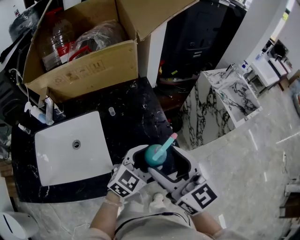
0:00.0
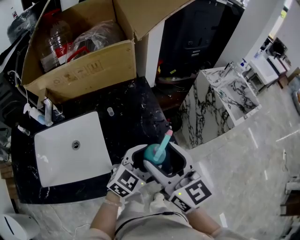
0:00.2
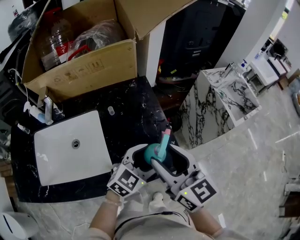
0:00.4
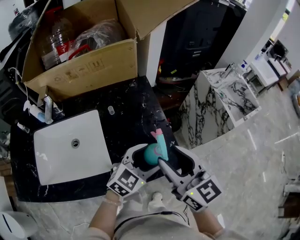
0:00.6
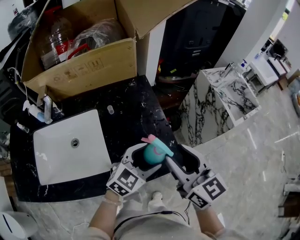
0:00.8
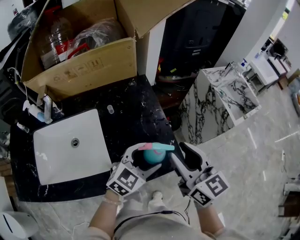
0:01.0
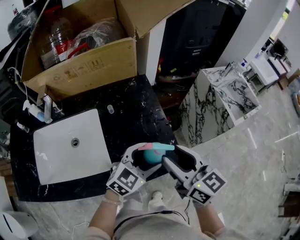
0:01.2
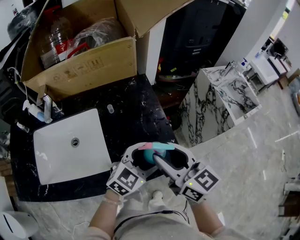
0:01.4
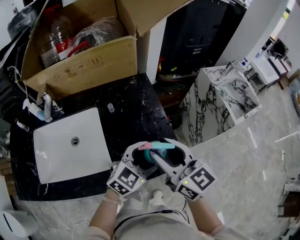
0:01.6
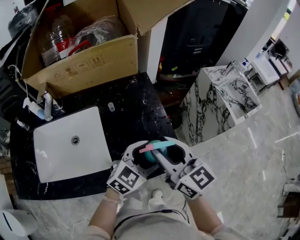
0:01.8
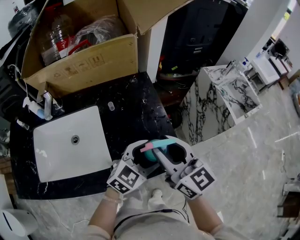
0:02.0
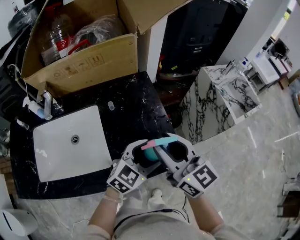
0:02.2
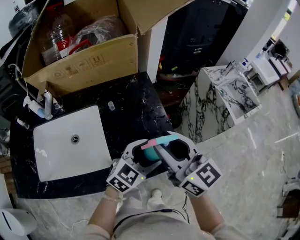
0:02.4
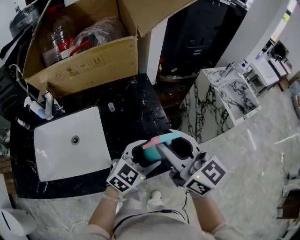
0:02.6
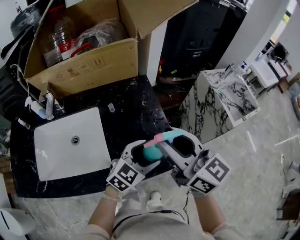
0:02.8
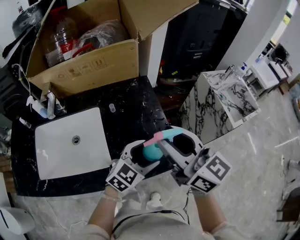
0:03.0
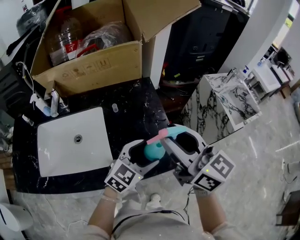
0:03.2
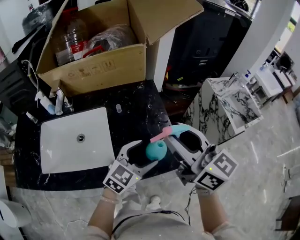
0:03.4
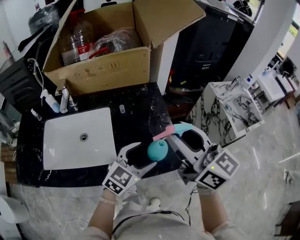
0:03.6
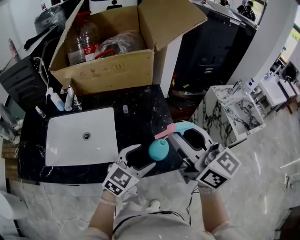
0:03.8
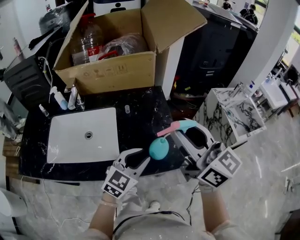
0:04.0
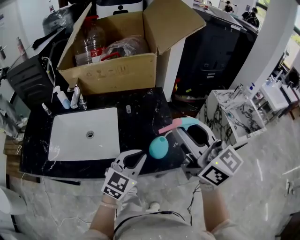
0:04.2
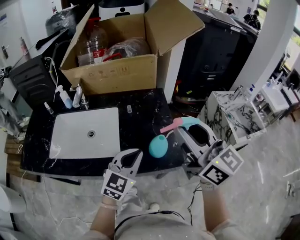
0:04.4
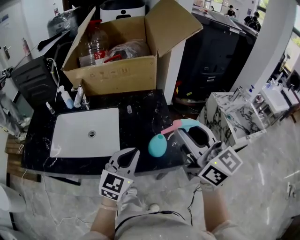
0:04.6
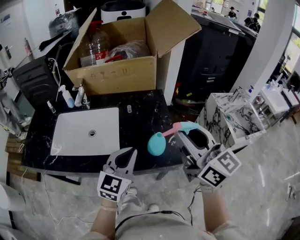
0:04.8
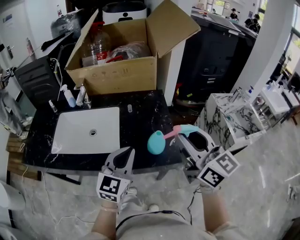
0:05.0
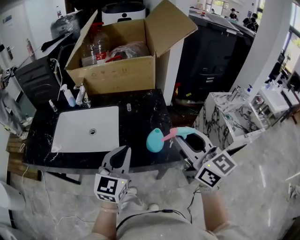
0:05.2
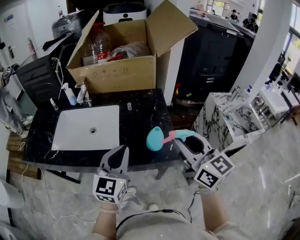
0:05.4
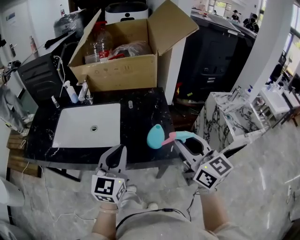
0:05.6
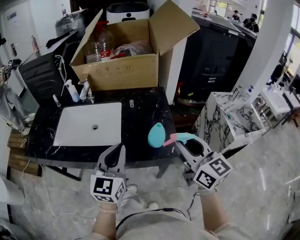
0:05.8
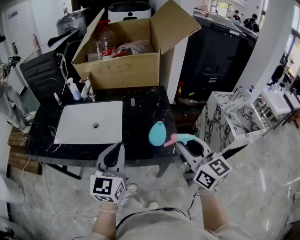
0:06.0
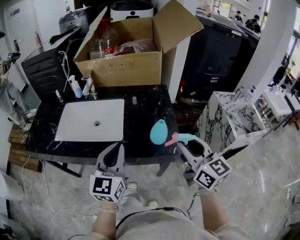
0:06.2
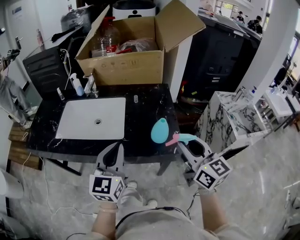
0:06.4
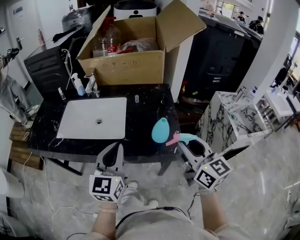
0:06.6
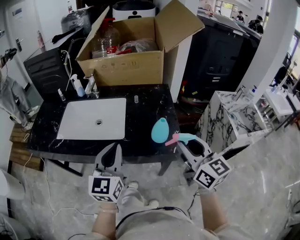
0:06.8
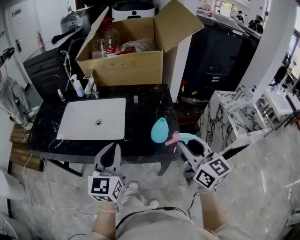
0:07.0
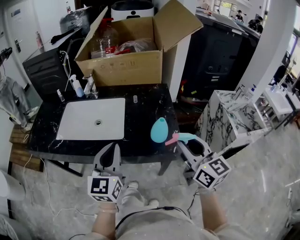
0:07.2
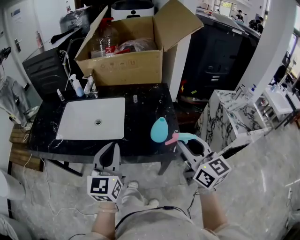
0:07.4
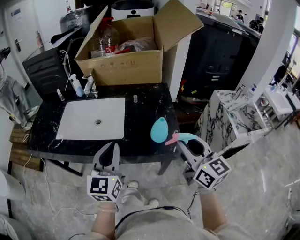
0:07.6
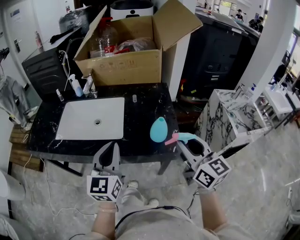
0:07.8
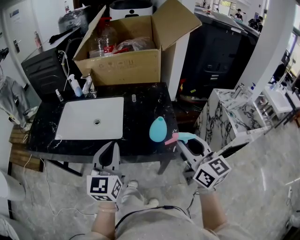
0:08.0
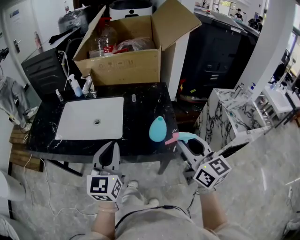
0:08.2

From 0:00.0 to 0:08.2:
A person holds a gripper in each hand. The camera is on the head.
From 0:00.0 to 0:01.6: The right gripper closes up.
From 0:01.6 to 0:03.2: The right gripper heads upward, covering approximately 10 cm.
From 0:03.2 to 0:05.0: The left gripper moves upward, to the left and backward, roughly 15 cm, changes its angle by some 40 degrees, and closes up. The right gripper shifts approximately 5 cm backward.
From 0:05.0 to 0:06.6: The right gripper goes roughly 10 cm downward; the left gripper heads to the left, covering about 5 cm.
From 0:06.6 to 0:08.2: Both grippers stay put.

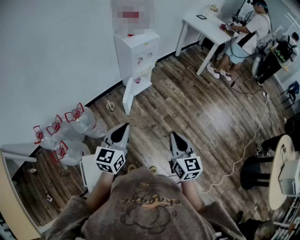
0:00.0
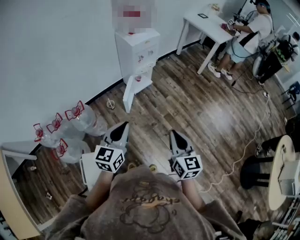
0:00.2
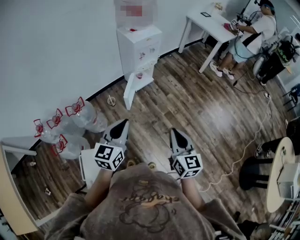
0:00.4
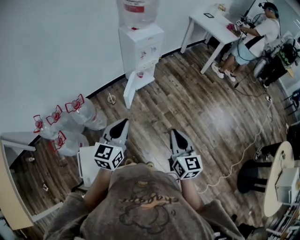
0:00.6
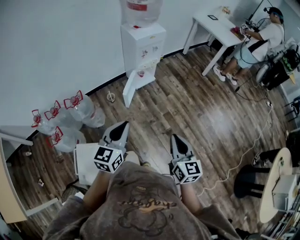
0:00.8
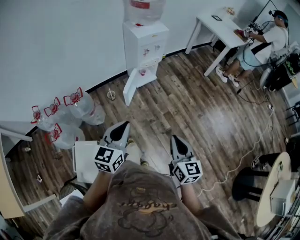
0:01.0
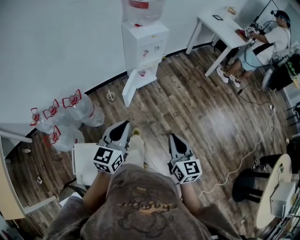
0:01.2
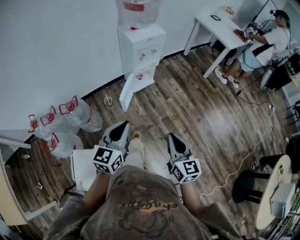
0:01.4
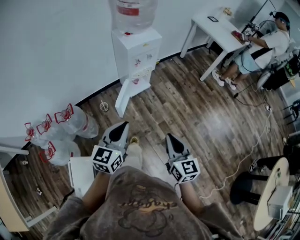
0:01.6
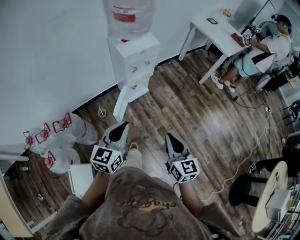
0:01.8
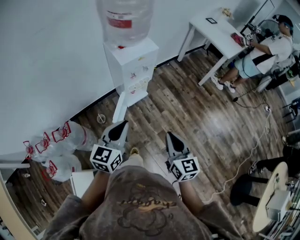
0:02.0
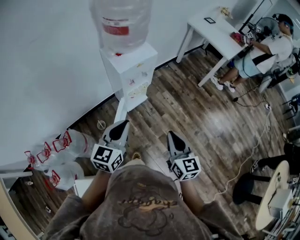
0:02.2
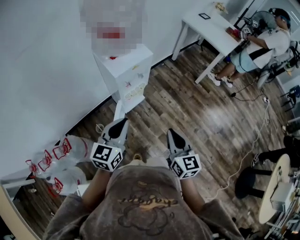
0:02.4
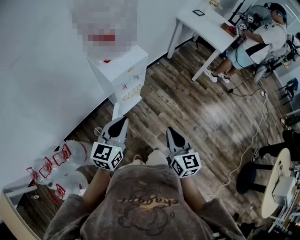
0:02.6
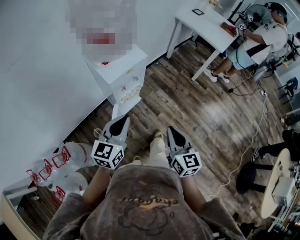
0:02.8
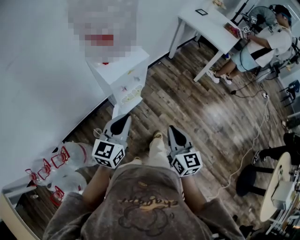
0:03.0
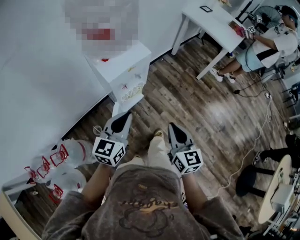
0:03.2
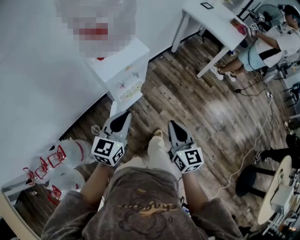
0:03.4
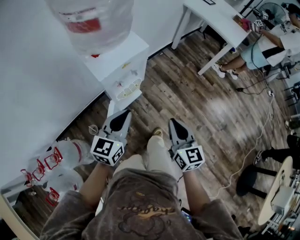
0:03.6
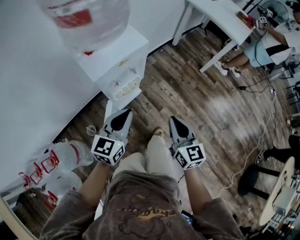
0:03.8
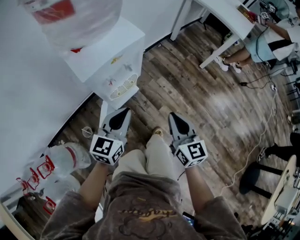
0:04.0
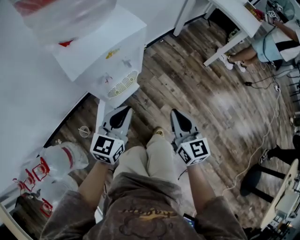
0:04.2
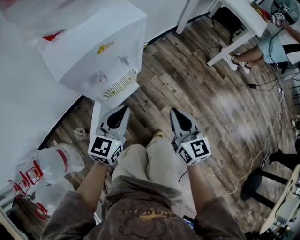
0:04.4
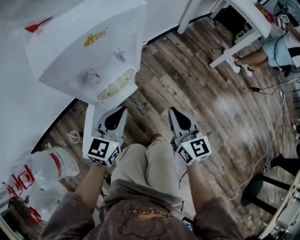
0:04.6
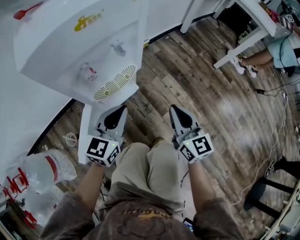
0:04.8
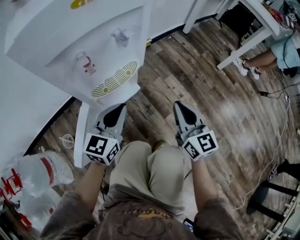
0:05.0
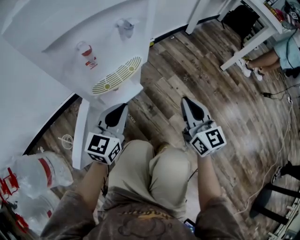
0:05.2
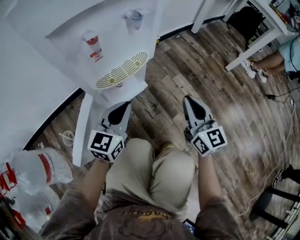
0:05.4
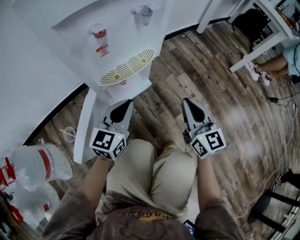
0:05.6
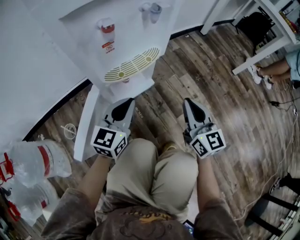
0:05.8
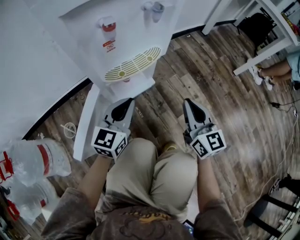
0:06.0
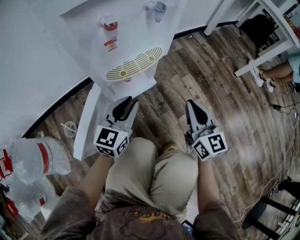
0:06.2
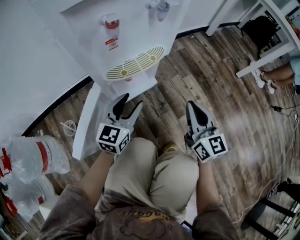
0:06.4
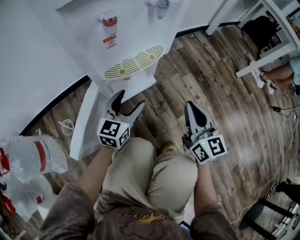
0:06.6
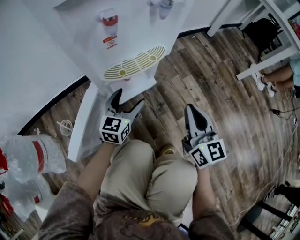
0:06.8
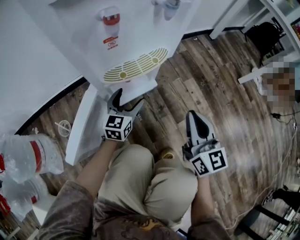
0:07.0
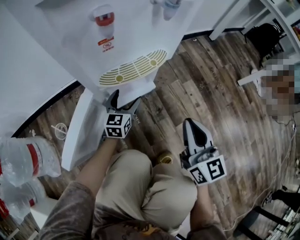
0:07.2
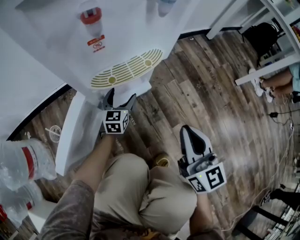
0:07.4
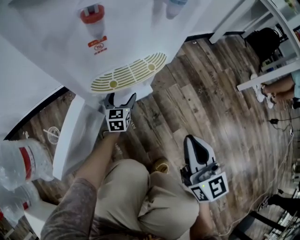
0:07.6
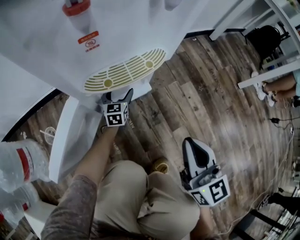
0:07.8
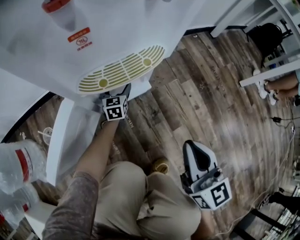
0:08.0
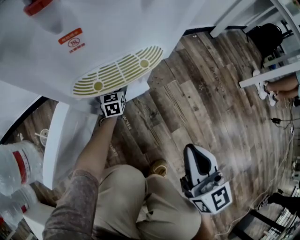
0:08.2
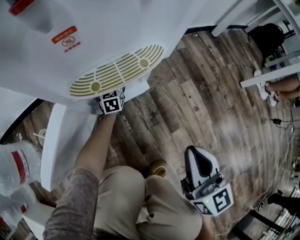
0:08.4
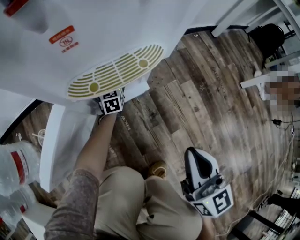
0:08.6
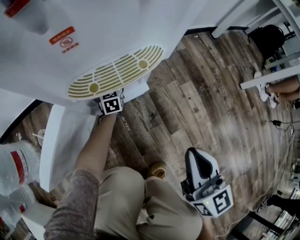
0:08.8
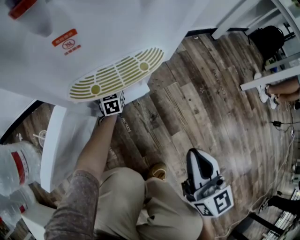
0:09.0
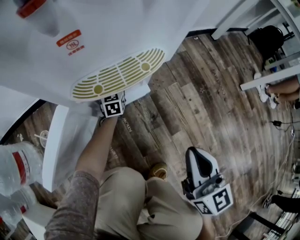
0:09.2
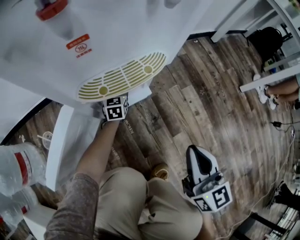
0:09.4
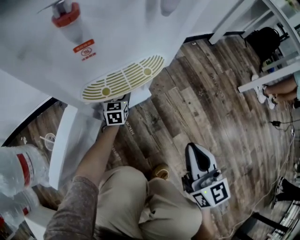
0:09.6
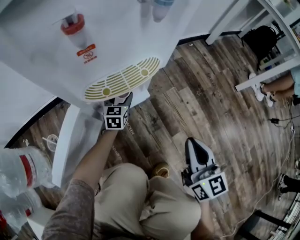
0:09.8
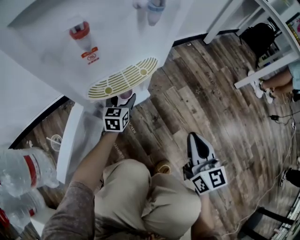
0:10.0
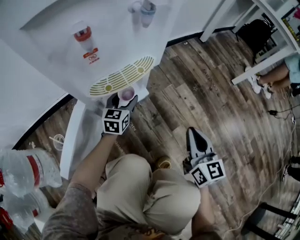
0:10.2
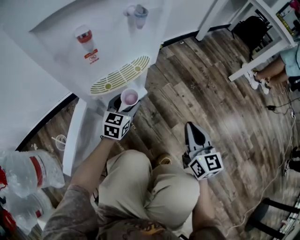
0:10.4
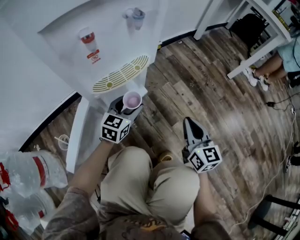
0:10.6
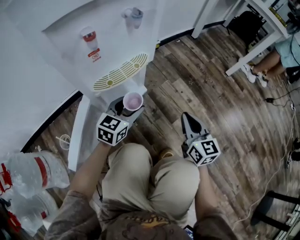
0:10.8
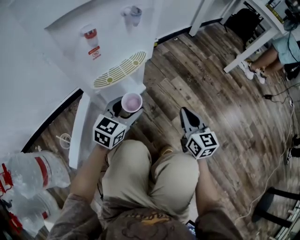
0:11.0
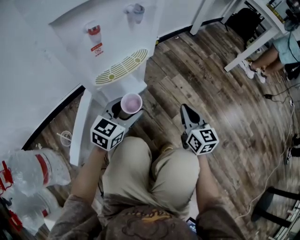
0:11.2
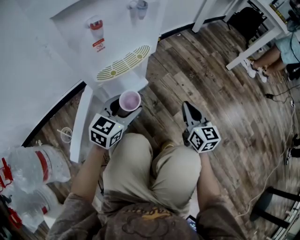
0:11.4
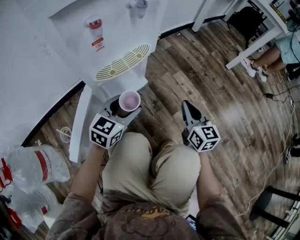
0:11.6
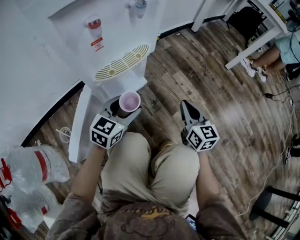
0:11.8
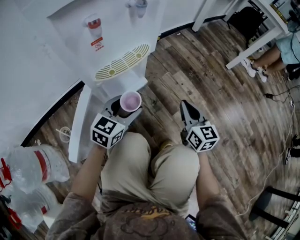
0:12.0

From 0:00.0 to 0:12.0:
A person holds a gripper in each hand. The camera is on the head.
From 0:00.0 to 0:01.6: The left gripper goes some 15 cm forward and to the right. The right gripper moves forward, about 15 cm.
From 0:01.6 to 0:03.0: The grippers both shift forward by some 30 cm.
From 0:03.0 to 0:04.4: The grippers both shift downward and forward by some 35 cm.
From 0:04.4 to 0:06.0: Both grippers move downward, approximately 25 cm.
From 0:06.0 to 0:07.6: The left gripper is displaced downward and forward by about 30 cm, rotates approximately 20 degrees, and opens up.
From 0:07.6 to 0:09.0: The left gripper travels forward and downward by approximately 10 cm.
From 0:09.0 to 0:10.4: The left gripper is displaced upward, backward and to the right by approximately 25 cm, and rotates some 30 degrees.
From 0:10.4 to 0:12.0: The left gripper goes approximately 15 cm backward and upward.

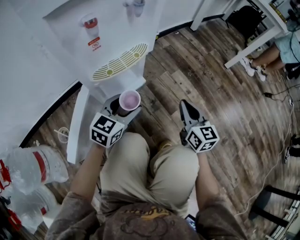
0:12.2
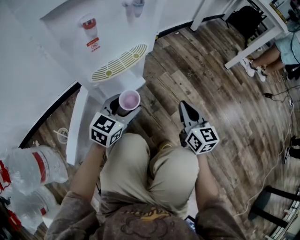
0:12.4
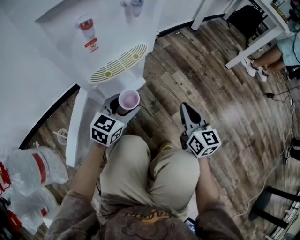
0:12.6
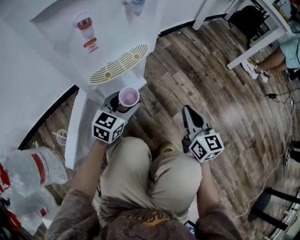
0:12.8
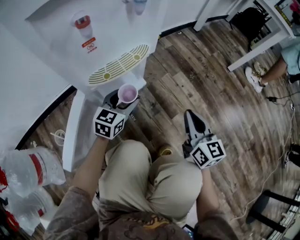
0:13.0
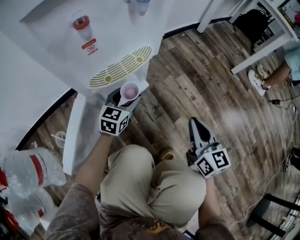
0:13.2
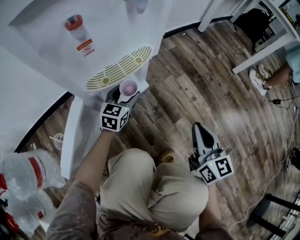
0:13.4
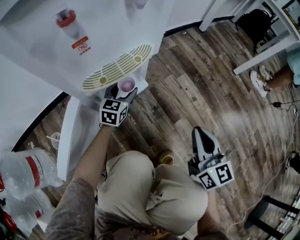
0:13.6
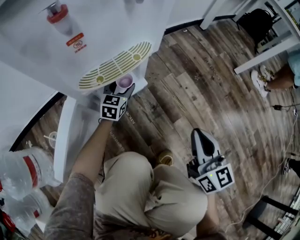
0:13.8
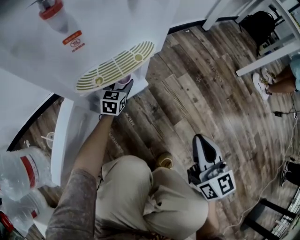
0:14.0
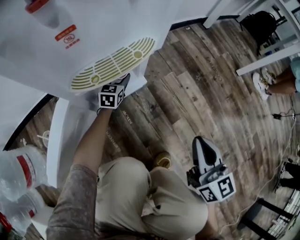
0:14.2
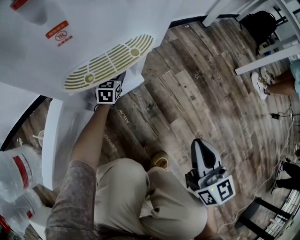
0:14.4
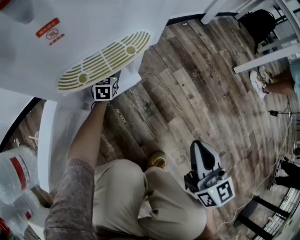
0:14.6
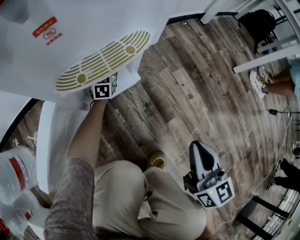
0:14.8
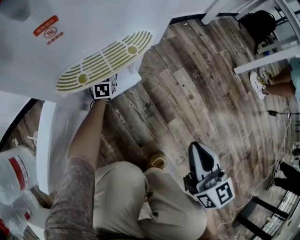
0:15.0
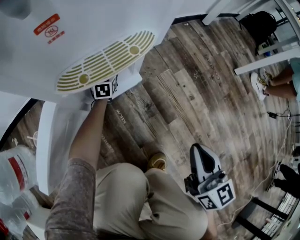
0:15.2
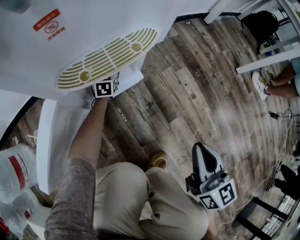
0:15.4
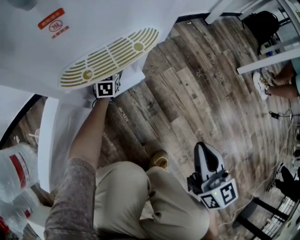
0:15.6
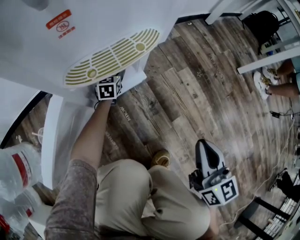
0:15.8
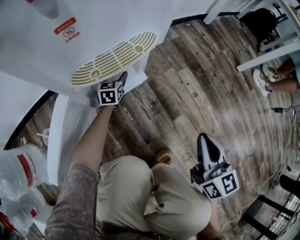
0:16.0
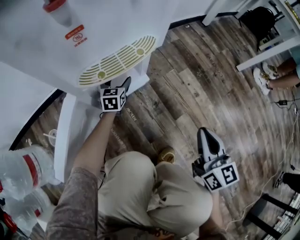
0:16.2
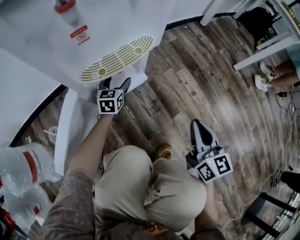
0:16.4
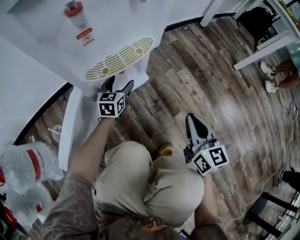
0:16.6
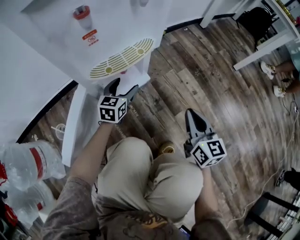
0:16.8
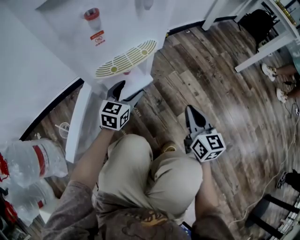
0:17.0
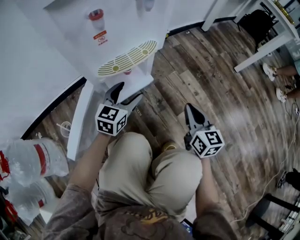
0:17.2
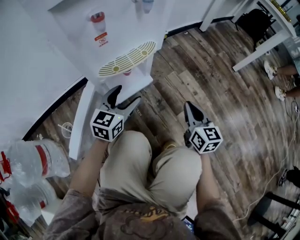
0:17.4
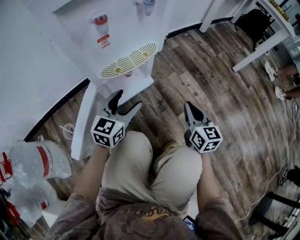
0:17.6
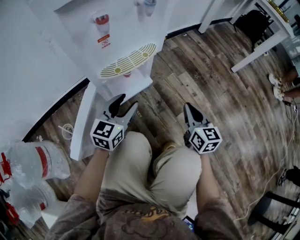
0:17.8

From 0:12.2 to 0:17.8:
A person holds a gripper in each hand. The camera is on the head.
From 0:12.2 to 0:13.6: The left gripper is displaced forward and downward by about 20 cm.
From 0:13.6 to 0:15.0: The left gripper is displaced downward, forward and to the left by some 20 cm, and changes its angle by about 20 degrees.
From 0:15.0 to 0:16.4: The left gripper travels backward and upward by some 15 cm.
From 0:16.4 to 0:17.8: The left gripper goes roughly 25 cm upward and backward, and rotates roughly 20 degrees.
